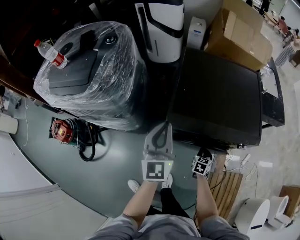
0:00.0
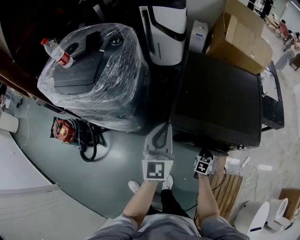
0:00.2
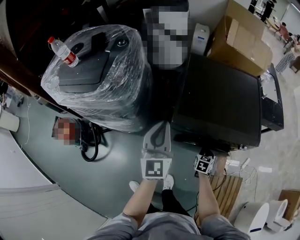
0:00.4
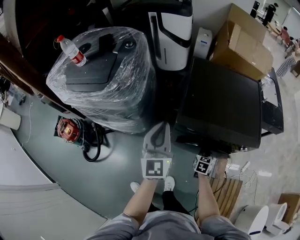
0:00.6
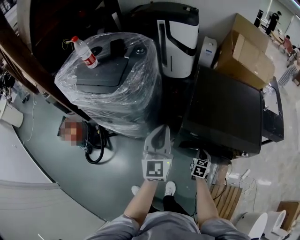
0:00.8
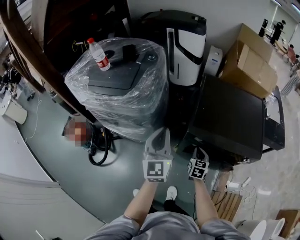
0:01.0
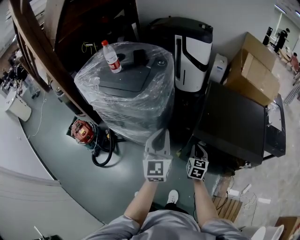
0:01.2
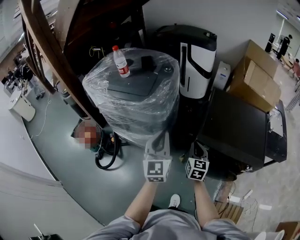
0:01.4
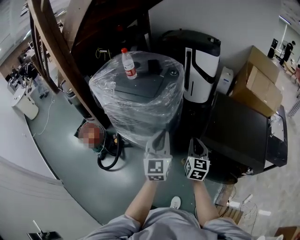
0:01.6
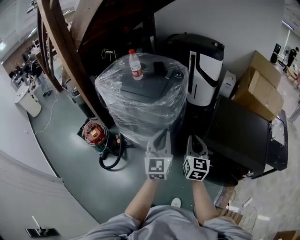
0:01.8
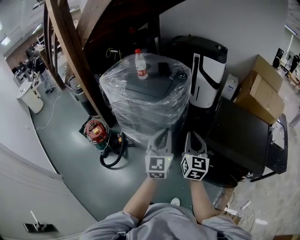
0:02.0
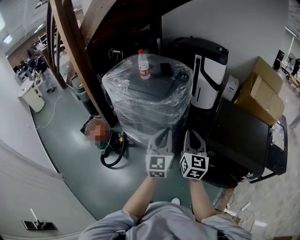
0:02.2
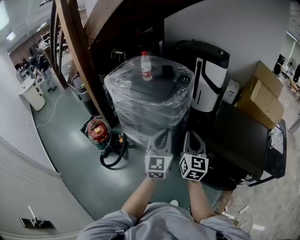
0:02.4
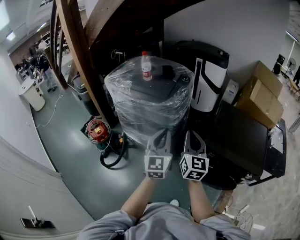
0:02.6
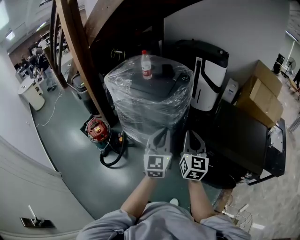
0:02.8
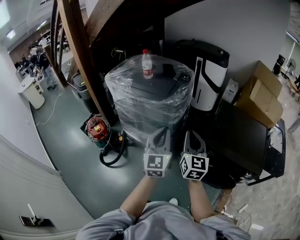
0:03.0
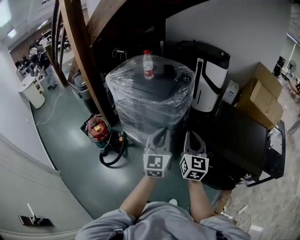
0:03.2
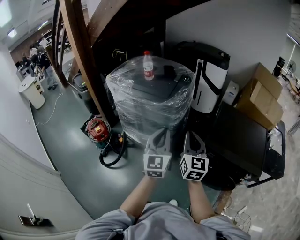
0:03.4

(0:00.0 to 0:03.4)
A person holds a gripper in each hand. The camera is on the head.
0:00.0 - 0:01.6: The left gripper is displaced to the left, upward and backward by approximately 25 cm. The right gripper moves upward and to the left, approximately 50 cm, and angles its fingers upward, by approximately 40 degrees.
0:01.6 - 0:03.4: The left gripper shifts some 10 cm backward and to the left. The right gripper is displaced upward, to the left and backward by some 15 cm.

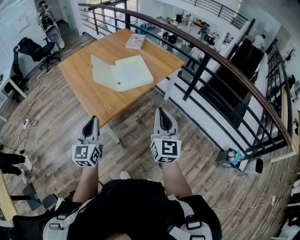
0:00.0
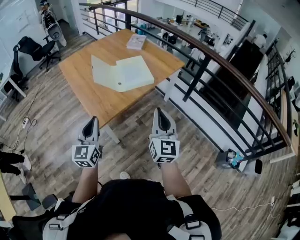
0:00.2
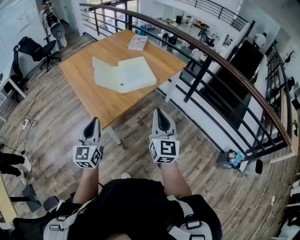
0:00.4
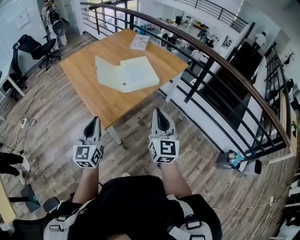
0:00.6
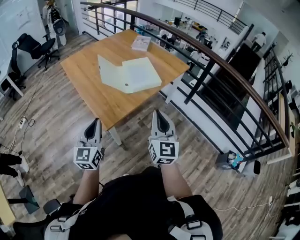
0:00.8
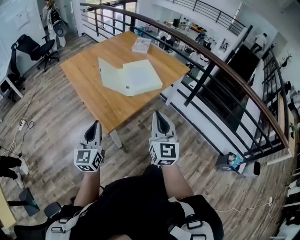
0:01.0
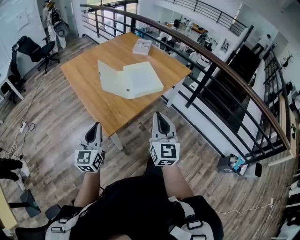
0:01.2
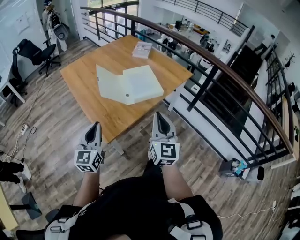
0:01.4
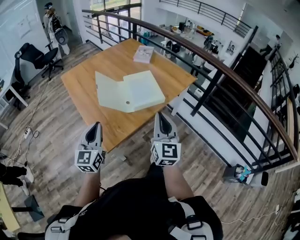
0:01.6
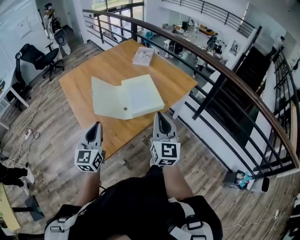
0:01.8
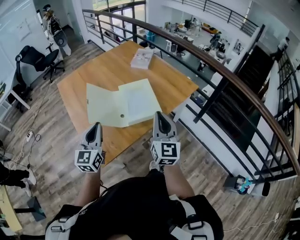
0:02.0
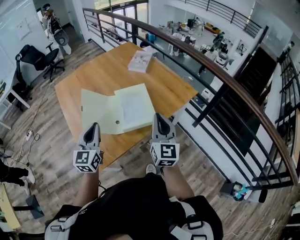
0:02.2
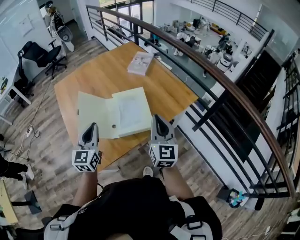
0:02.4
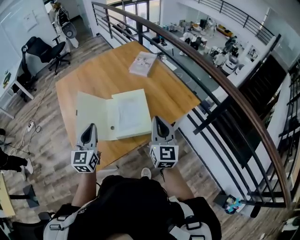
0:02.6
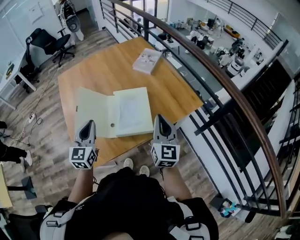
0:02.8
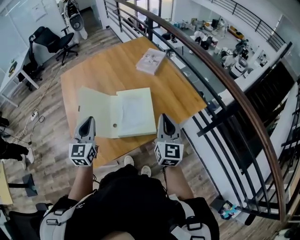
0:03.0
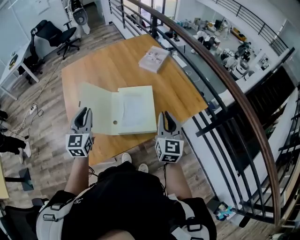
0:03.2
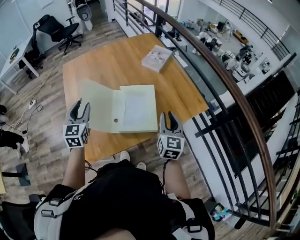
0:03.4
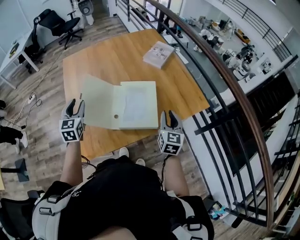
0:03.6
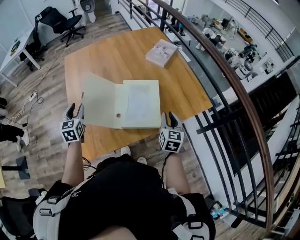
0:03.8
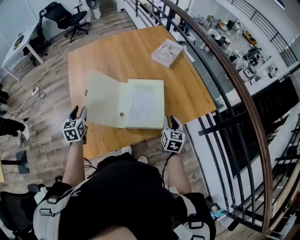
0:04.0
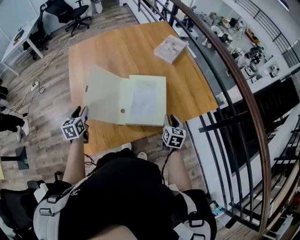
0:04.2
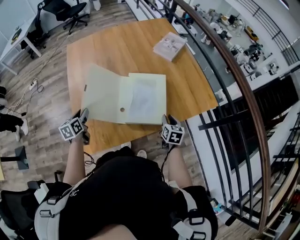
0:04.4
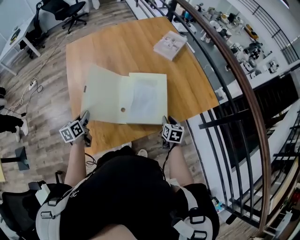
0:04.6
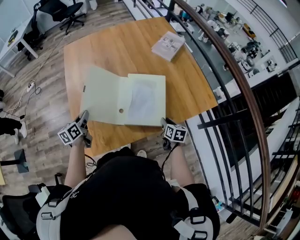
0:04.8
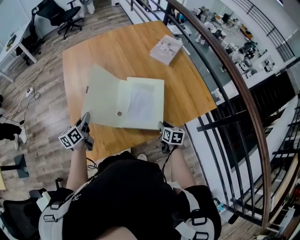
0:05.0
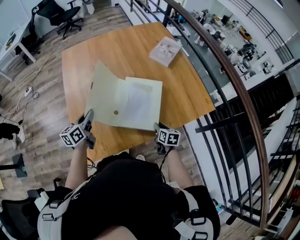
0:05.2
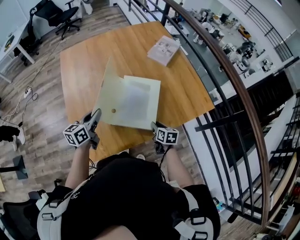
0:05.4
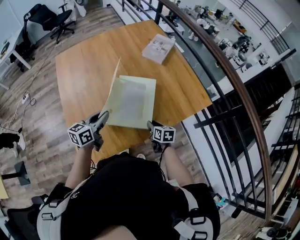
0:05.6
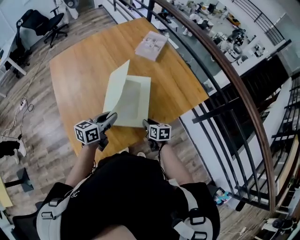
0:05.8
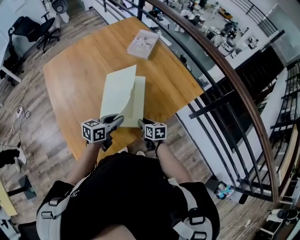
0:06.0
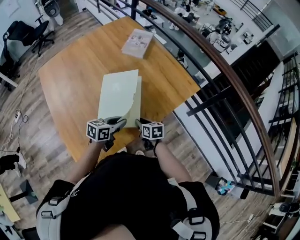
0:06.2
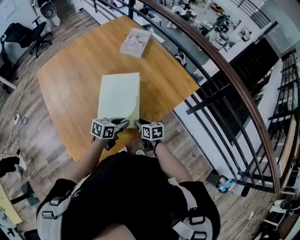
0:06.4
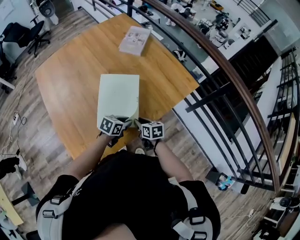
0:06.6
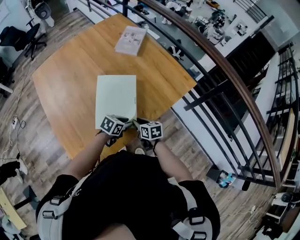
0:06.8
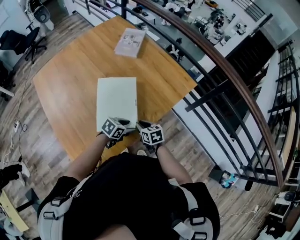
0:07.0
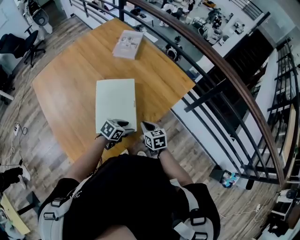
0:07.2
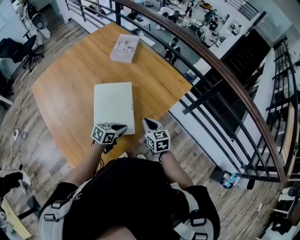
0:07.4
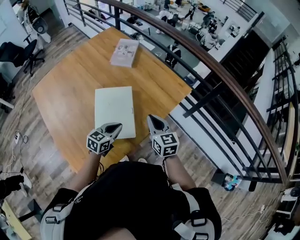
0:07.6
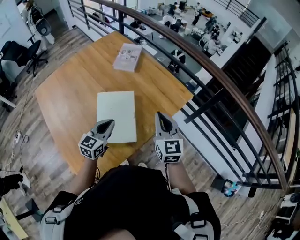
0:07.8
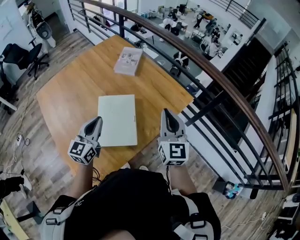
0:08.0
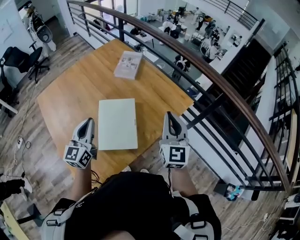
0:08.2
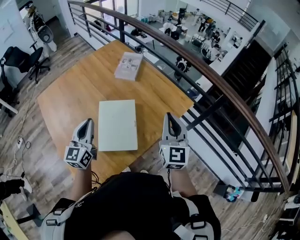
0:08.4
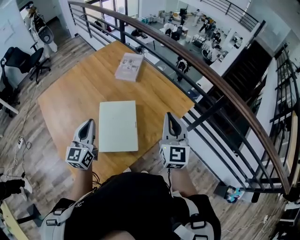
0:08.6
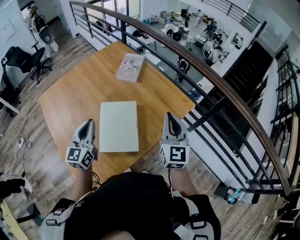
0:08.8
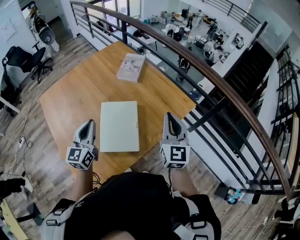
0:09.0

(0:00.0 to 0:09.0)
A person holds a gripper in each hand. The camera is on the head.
0:00.0 - 0:01.6: Both grippers move forward and to the left, some 15 cm.
0:01.6 - 0:03.0: The grippers both shift forward and to the right by approximately 30 cm.
0:03.0 - 0:04.4: The left gripper goes about 25 cm downward and to the left, rotates some 40 degrees, and opens up. The right gripper is displaced downward by about 25 cm, and tilts its fingers about 40 degrees downward.
0:04.4 - 0:06.0: The right gripper moves to the left, roughly 5 cm. Meanwhile the left gripper travels to the right by approximately 30 cm, changes its angle by some 50 degrees, and closes.
0:06.0 - 0:07.6: The left gripper moves approximately 10 cm downward and comes back, swivels some 20 degrees, and opens and closes again, while the right gripper travels upward by some 20 cm, swivels about 30 degrees, and closes.
0:07.6 - 0:09.0: The left gripper goes about 25 cm upward and to the left, and turns by some 40 degrees; the right gripper shifts about 15 cm upward, and rotates some 30 degrees.

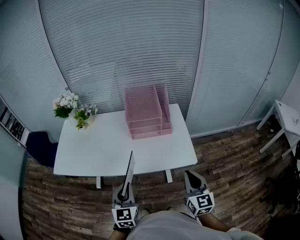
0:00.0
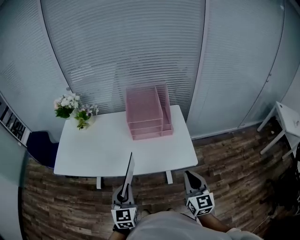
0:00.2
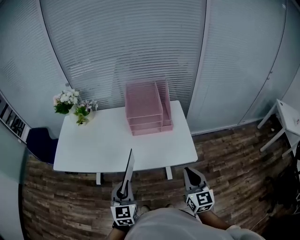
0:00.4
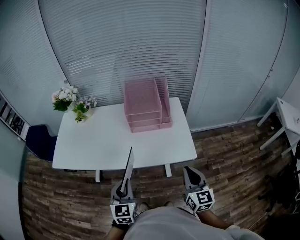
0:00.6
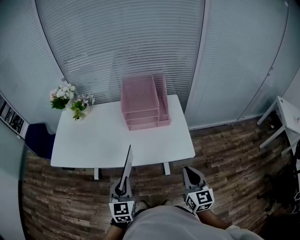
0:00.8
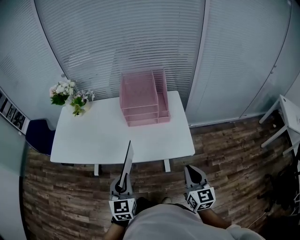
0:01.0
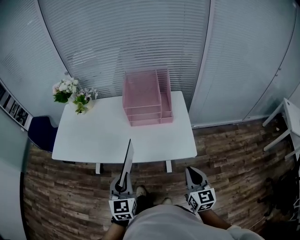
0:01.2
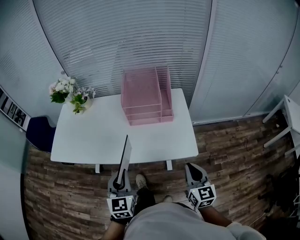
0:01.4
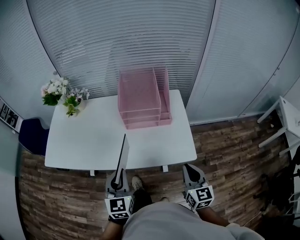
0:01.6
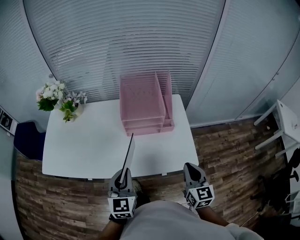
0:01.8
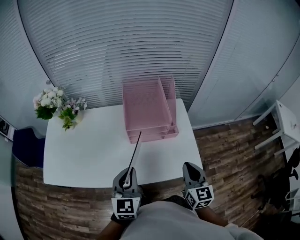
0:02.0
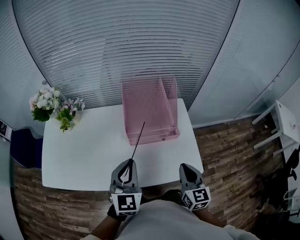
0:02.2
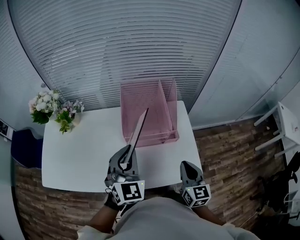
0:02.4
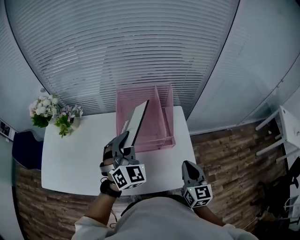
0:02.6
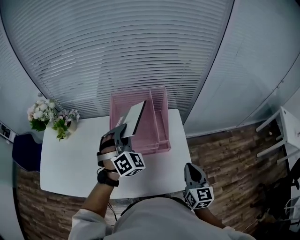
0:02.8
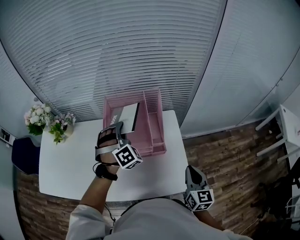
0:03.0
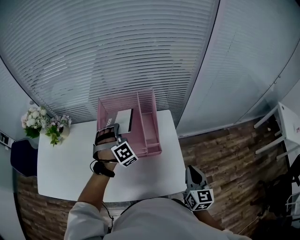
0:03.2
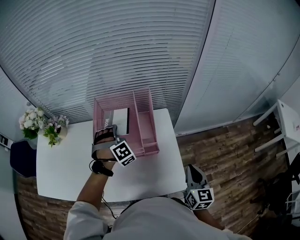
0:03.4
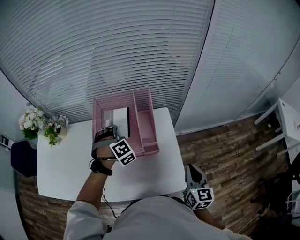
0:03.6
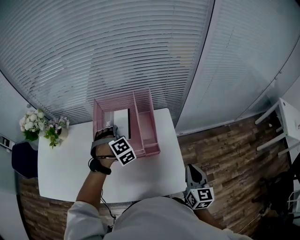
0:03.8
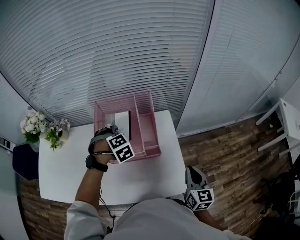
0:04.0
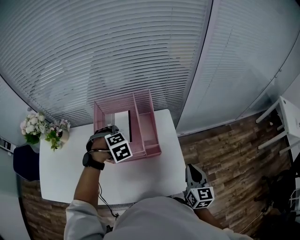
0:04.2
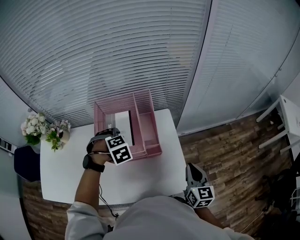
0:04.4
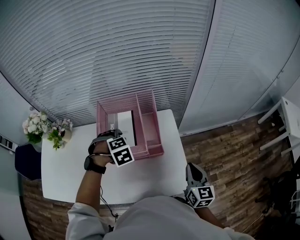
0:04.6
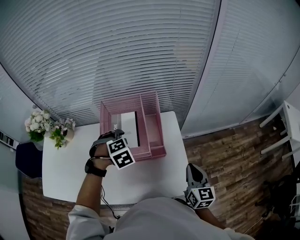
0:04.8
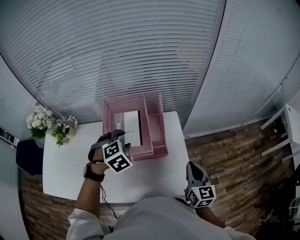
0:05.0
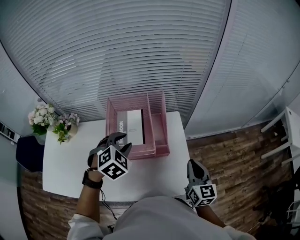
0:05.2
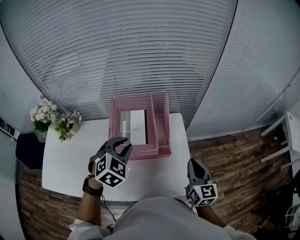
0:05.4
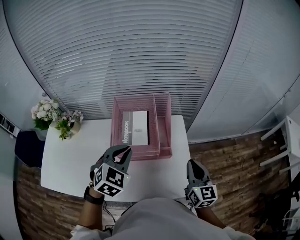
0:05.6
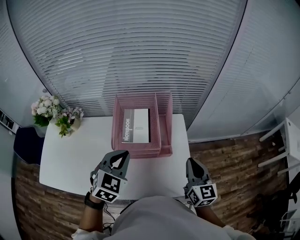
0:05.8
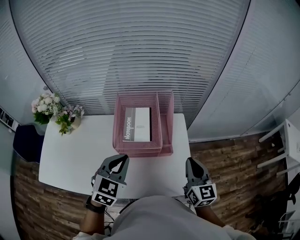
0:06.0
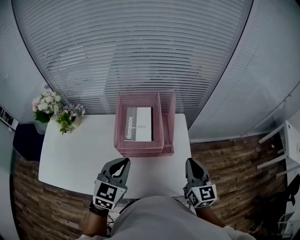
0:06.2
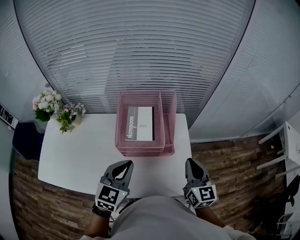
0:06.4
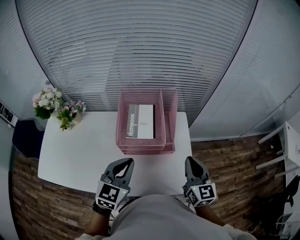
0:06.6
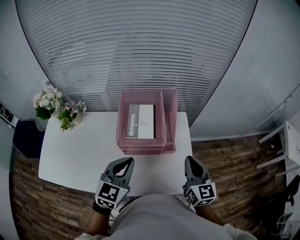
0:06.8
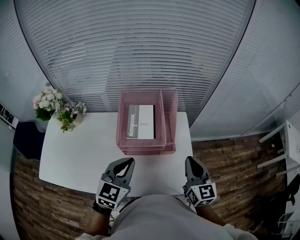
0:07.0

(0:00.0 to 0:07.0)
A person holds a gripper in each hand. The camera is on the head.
0:00.0 - 0:01.4: The right gripper moves downward, approximately 5 cm.
0:01.4 - 0:02.8: The right gripper is displaced forward by roughly 20 cm. Meanwhile the left gripper moves forward, some 40 cm, and twists roughly 50 degrees clockwise, seen from behind.
0:02.8 - 0:04.2: The right gripper shifts approximately 10 cm to the right. The left gripper is displaced downward by some 10 cm, angles its fingers downward, by approximately 50 degrees, and opens up.
0:04.2 - 0:05.6: The right gripper travels to the left and upward by approximately 10 cm; the left gripper shifts about 15 cm upward and backward, angles its fingers upward, by roughly 30 degrees, and closes.
0:05.6 - 0:07.0: The left gripper is displaced backward by roughly 5 cm, and swivels roughly 30 degrees.

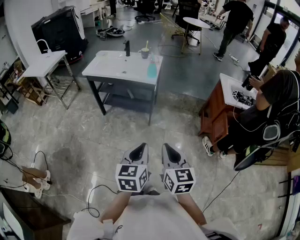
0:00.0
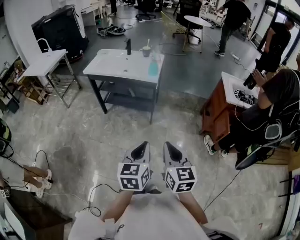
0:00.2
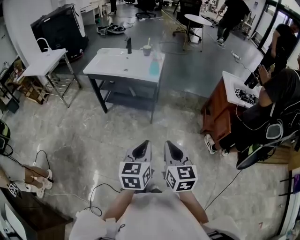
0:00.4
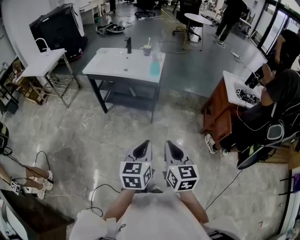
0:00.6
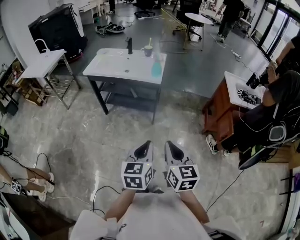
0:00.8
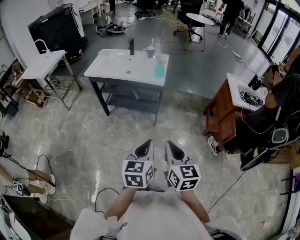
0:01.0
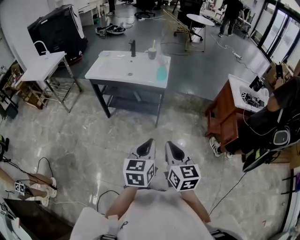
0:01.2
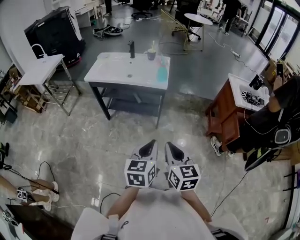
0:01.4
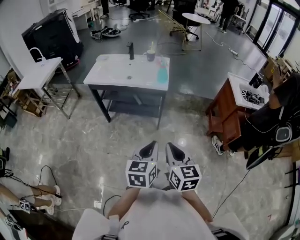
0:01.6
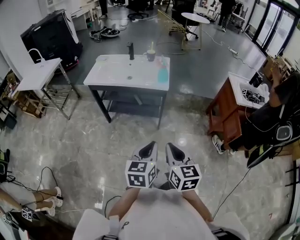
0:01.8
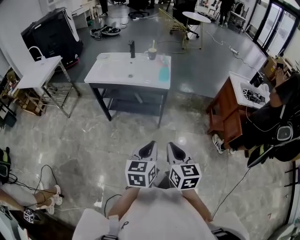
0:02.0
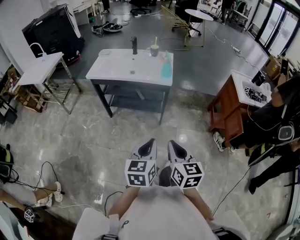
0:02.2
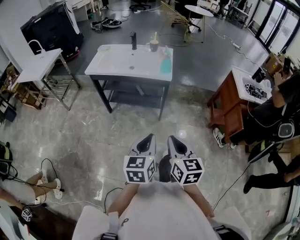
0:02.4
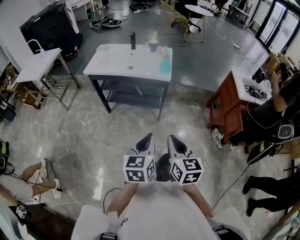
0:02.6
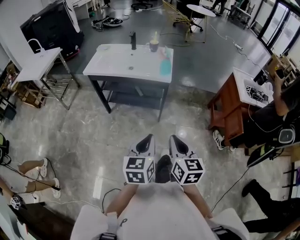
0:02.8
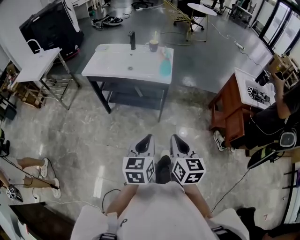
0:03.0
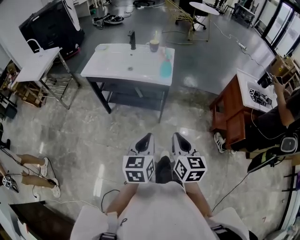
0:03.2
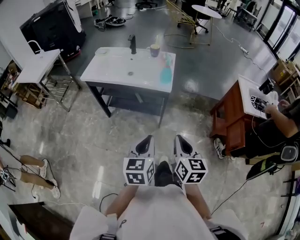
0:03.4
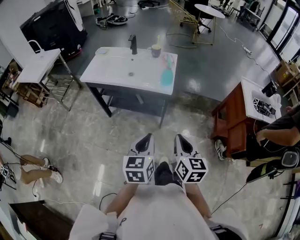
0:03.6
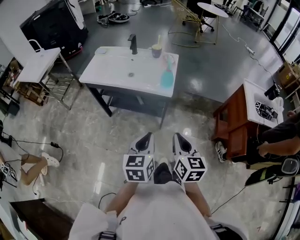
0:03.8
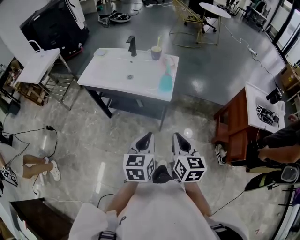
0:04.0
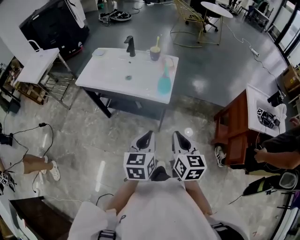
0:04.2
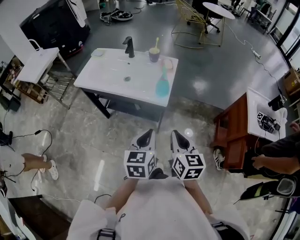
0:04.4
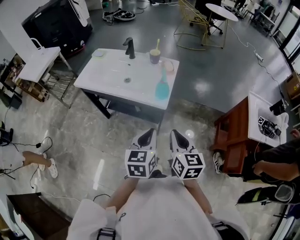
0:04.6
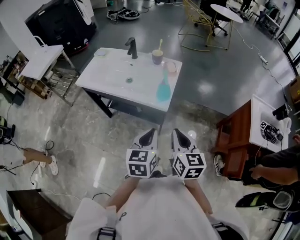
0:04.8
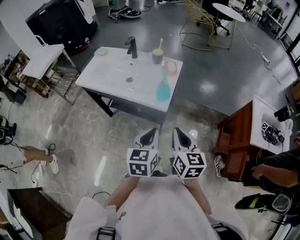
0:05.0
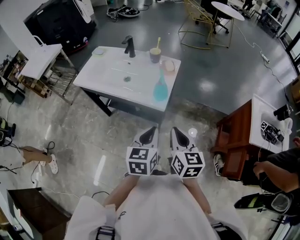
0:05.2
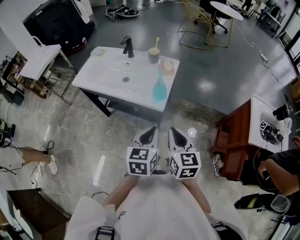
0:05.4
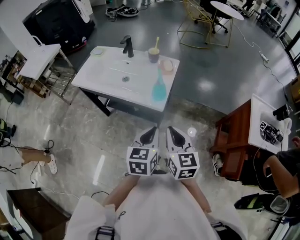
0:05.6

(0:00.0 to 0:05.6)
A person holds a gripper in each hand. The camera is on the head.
0:00.0 - 0:01.4: Both grippers travel together forward and to the left, some 10 cm.
0:01.4 - 0:02.8: The grippers move only a little.
0:02.8 - 0:04.2: Both grippers travel together forward, approximately 20 cm.
0:04.2 - 0:05.6: The left gripper moves forward and to the right, about 10 cm; the right gripper goes approximately 10 cm forward.
